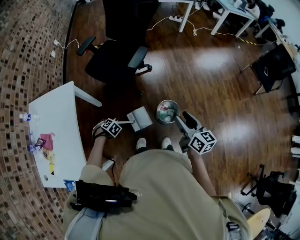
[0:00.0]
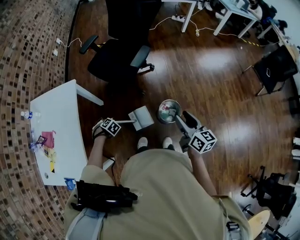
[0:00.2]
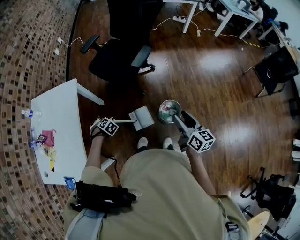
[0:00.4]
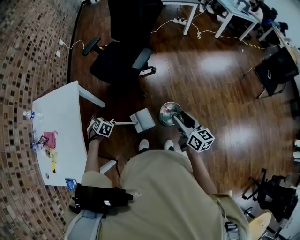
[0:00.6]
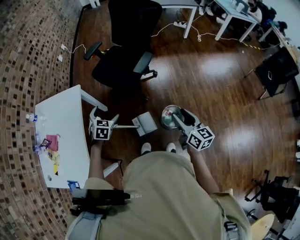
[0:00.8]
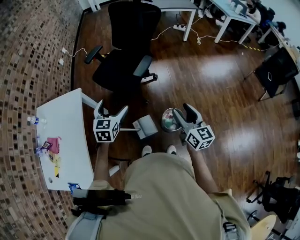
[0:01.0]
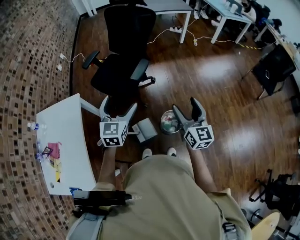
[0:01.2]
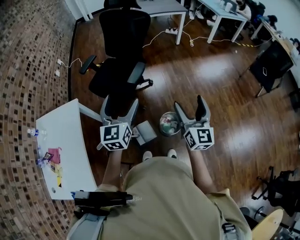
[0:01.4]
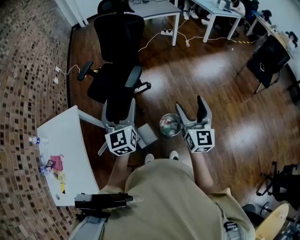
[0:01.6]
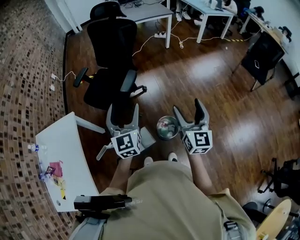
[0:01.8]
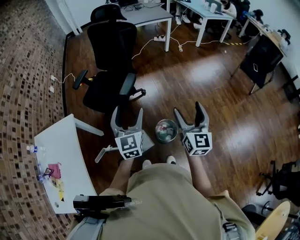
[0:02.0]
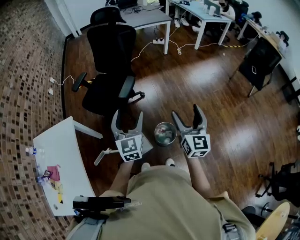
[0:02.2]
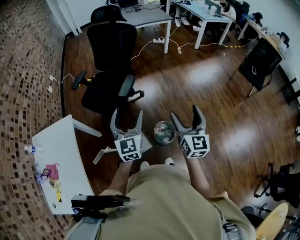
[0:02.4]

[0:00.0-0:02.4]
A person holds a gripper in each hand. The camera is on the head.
0:00.0 to 0:01.2: The right gripper shifts about 10 cm upward, and changes its angle by about 30 degrees; the left gripper goes about 40 cm upward, points its fingers about 70 degrees further upward, and opens.
0:01.2 to 0:02.4: The left gripper is displaced to the right by roughly 10 cm. Meanwhile the right gripper heads to the right, covering some 5 cm.

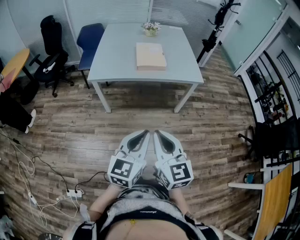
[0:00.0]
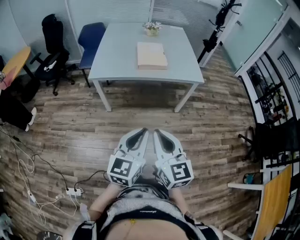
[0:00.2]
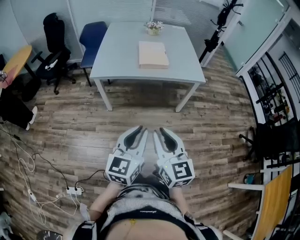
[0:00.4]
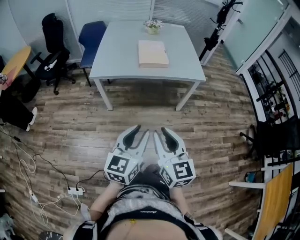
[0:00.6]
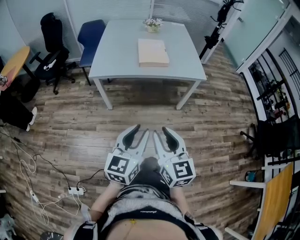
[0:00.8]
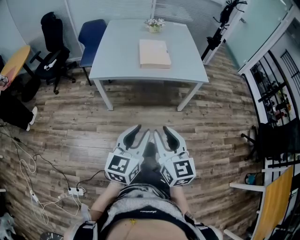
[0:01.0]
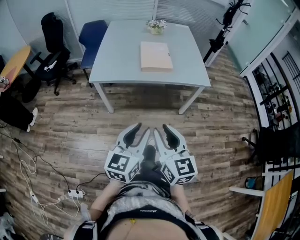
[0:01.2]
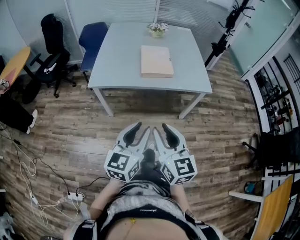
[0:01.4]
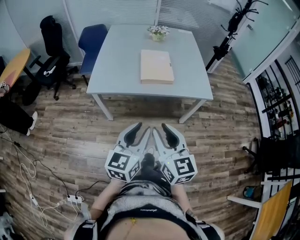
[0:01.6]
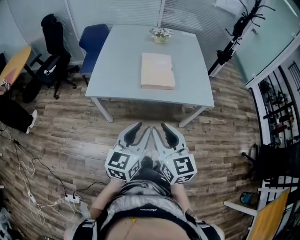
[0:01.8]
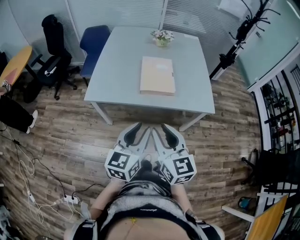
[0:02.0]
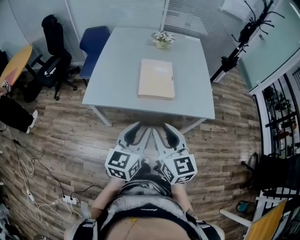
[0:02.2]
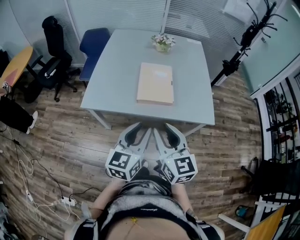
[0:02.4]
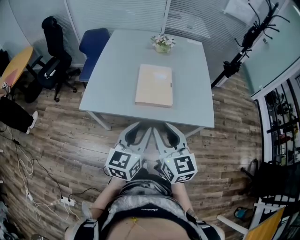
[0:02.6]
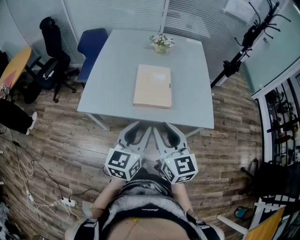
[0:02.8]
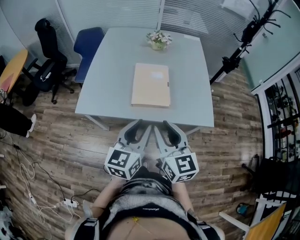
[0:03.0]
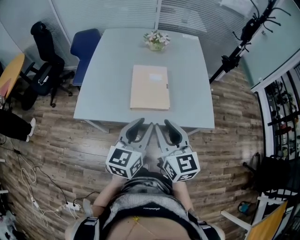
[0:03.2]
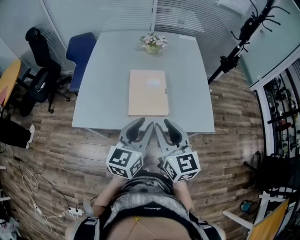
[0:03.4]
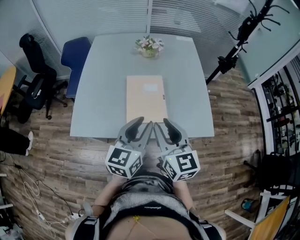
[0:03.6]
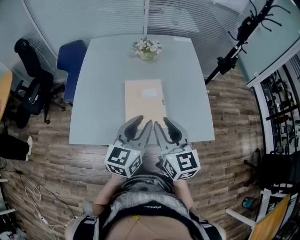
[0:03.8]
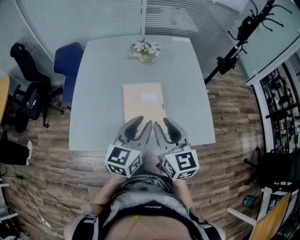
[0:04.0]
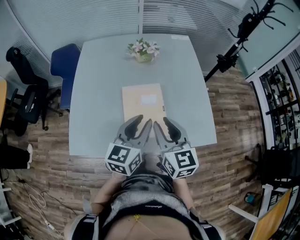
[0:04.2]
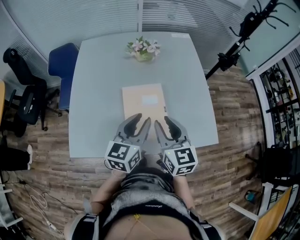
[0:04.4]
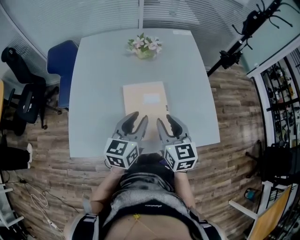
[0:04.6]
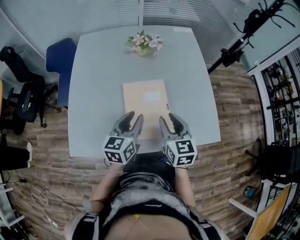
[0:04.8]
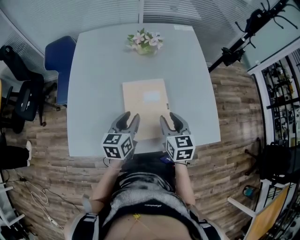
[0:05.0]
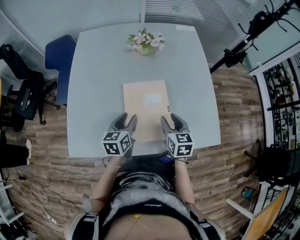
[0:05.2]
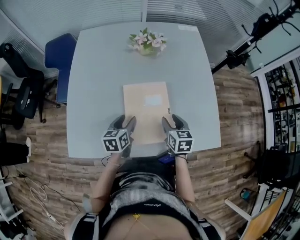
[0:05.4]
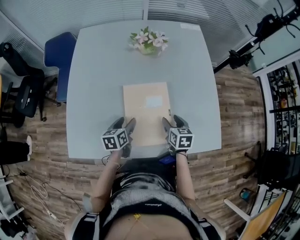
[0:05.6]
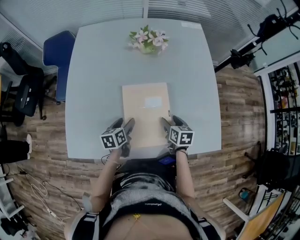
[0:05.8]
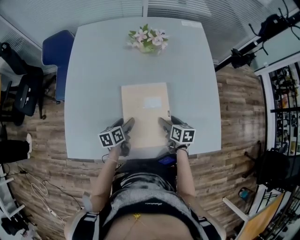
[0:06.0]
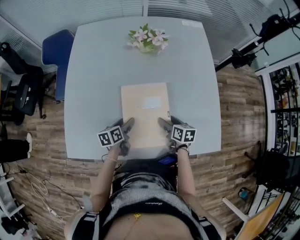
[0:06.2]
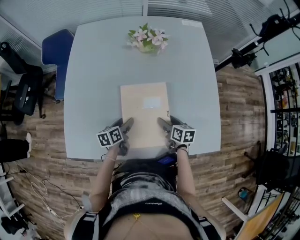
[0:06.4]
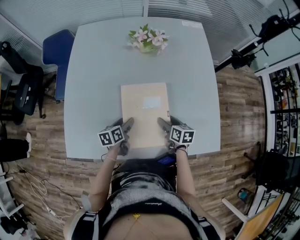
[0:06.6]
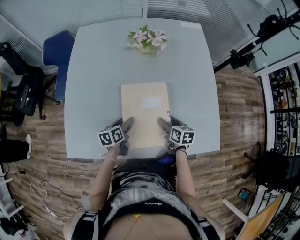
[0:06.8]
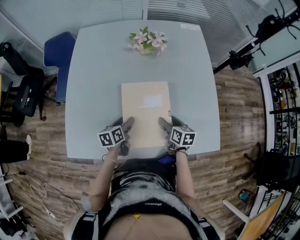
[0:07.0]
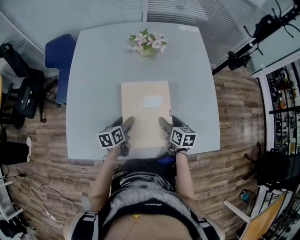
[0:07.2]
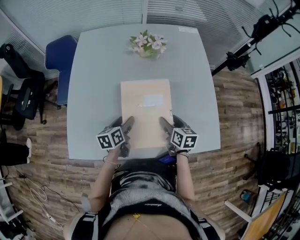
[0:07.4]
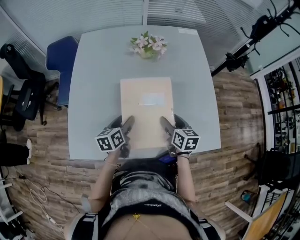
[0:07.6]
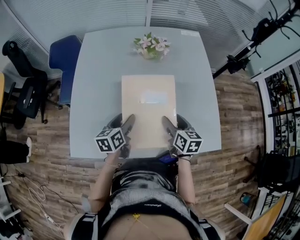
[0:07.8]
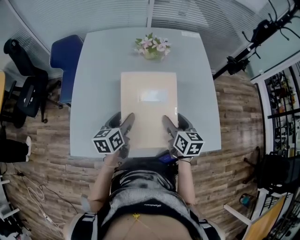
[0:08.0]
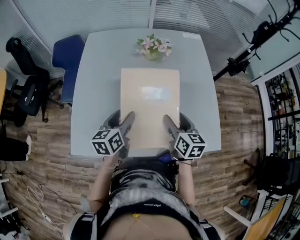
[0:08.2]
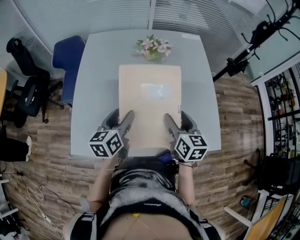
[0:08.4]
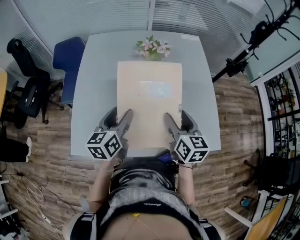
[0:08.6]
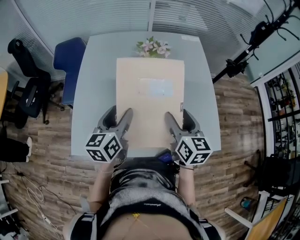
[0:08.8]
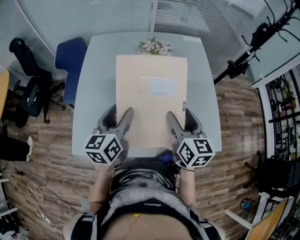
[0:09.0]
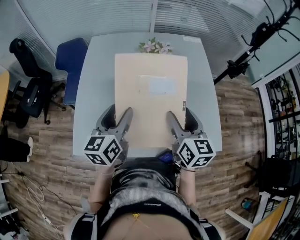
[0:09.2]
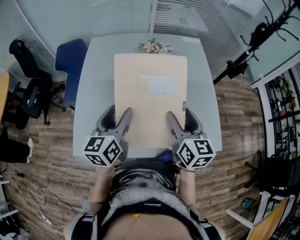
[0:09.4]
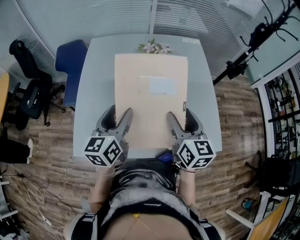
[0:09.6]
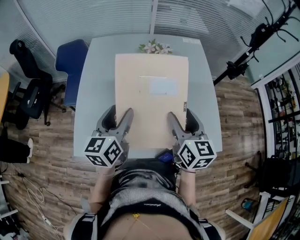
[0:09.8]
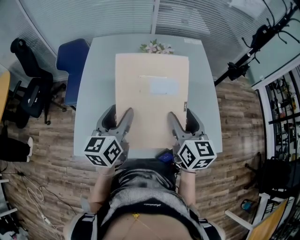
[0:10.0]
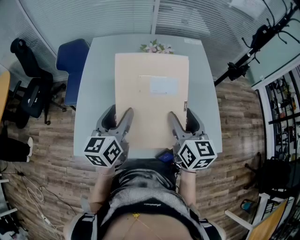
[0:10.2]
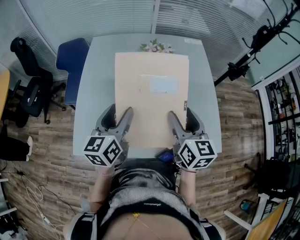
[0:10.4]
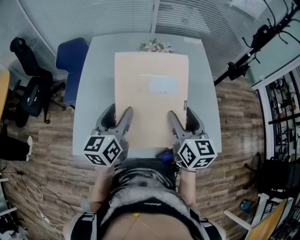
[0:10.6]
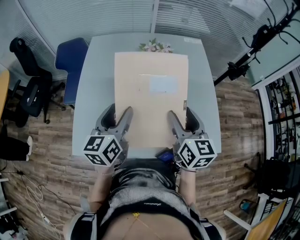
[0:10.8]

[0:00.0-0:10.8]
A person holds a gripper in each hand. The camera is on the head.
0:00.0 to 0:01.6: The two grippers go roughly 20 cm forward. The right gripper opens up.
0:01.6 to 0:03.0: The grippers both shift forward by some 25 cm.
0:03.0 to 0:04.6: Both grippers move forward, approximately 30 cm.
0:04.6 to 0:06.2: Both grippers move downward, about 25 cm. The right gripper swivels about 40 degrees, and opens. Meanwhile the left gripper turns by some 40 degrees, and opens its fingers.
0:06.2 to 0:07.8: The two grippers go some 15 cm upward.
0:07.8 to 0:09.2: Both grippers move upward, approximately 15 cm. The left gripper turns by approximately 20 degrees.
0:09.2 to 0:10.8: Both grippers stay about where they are.

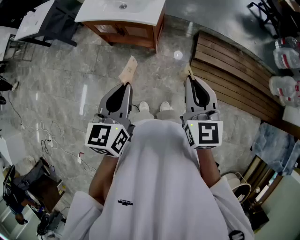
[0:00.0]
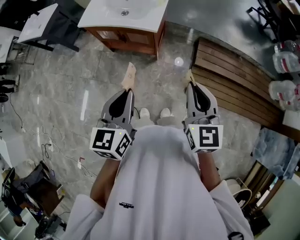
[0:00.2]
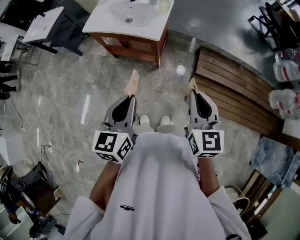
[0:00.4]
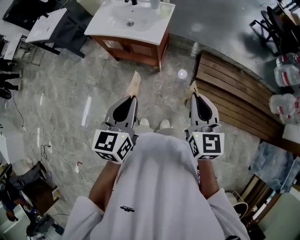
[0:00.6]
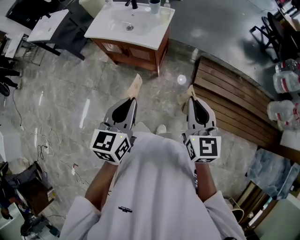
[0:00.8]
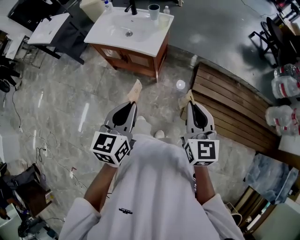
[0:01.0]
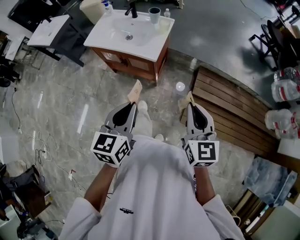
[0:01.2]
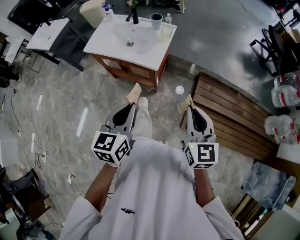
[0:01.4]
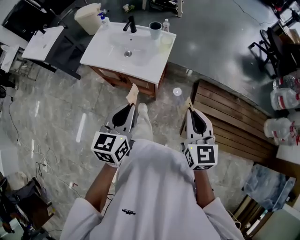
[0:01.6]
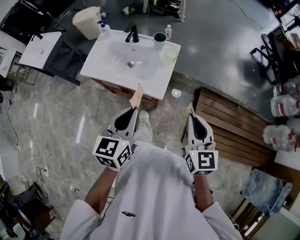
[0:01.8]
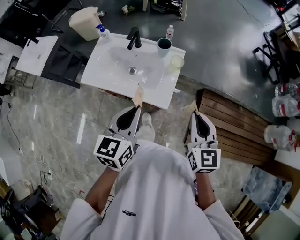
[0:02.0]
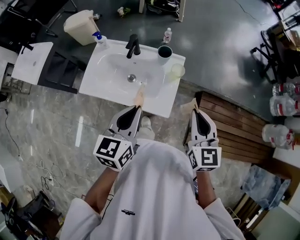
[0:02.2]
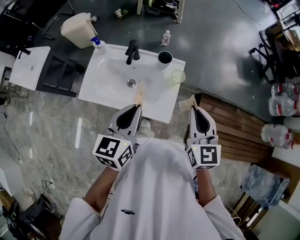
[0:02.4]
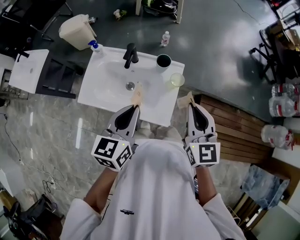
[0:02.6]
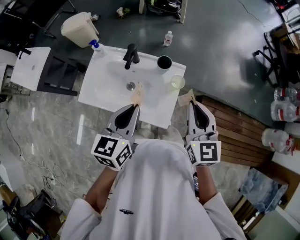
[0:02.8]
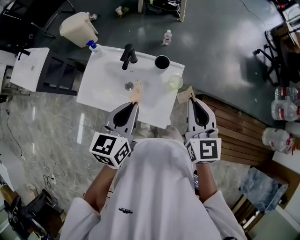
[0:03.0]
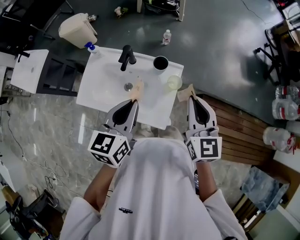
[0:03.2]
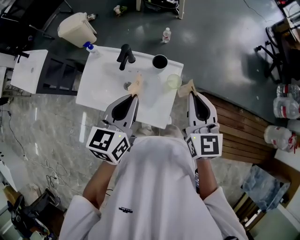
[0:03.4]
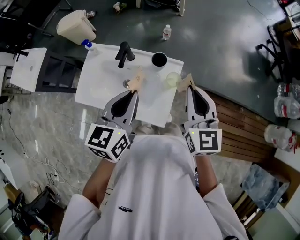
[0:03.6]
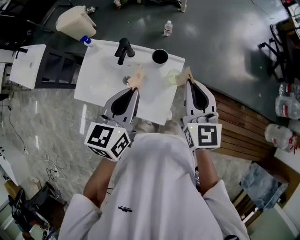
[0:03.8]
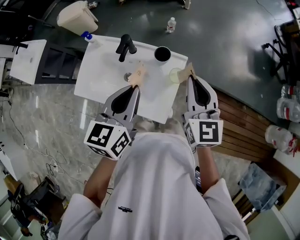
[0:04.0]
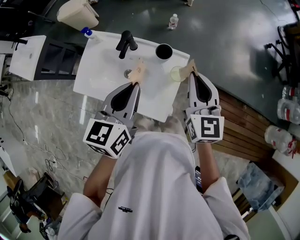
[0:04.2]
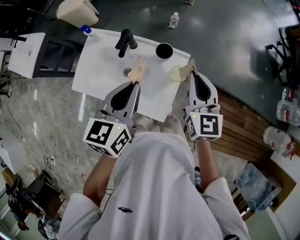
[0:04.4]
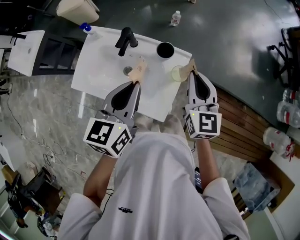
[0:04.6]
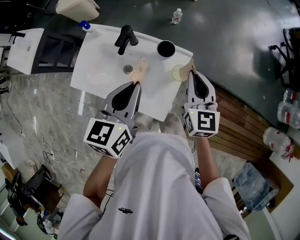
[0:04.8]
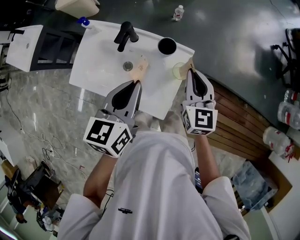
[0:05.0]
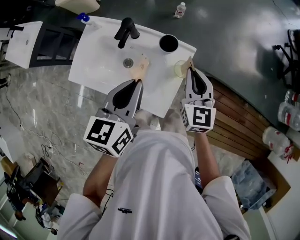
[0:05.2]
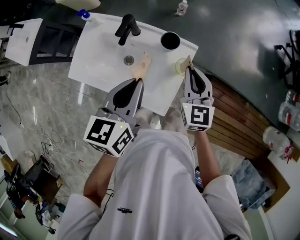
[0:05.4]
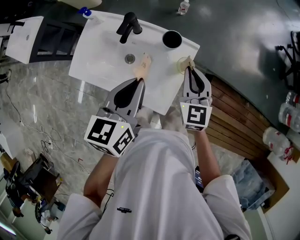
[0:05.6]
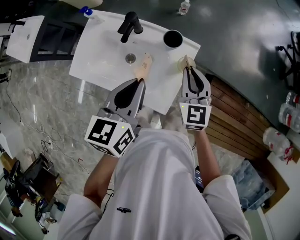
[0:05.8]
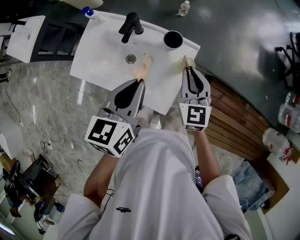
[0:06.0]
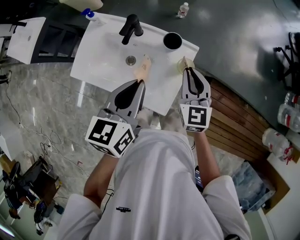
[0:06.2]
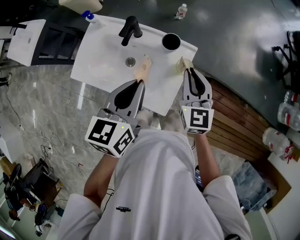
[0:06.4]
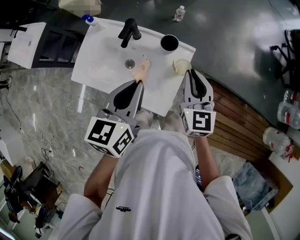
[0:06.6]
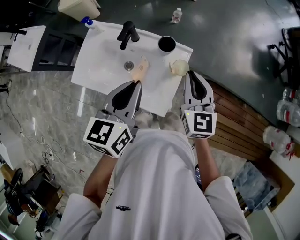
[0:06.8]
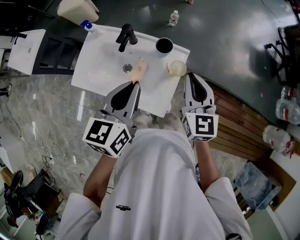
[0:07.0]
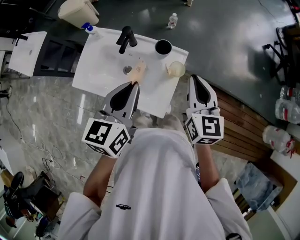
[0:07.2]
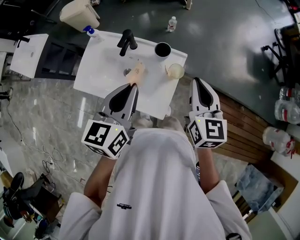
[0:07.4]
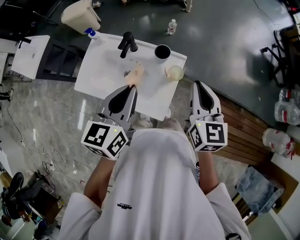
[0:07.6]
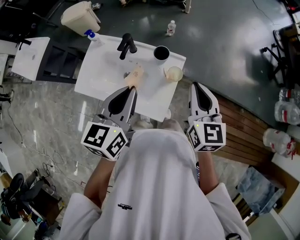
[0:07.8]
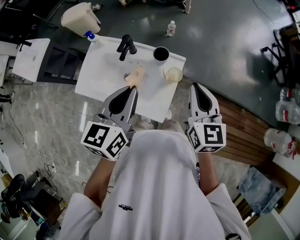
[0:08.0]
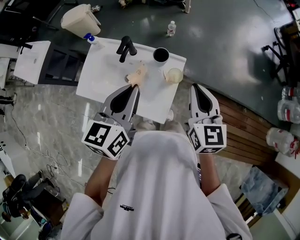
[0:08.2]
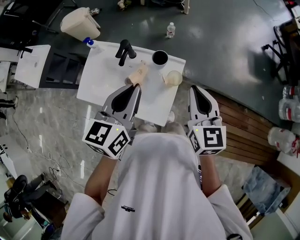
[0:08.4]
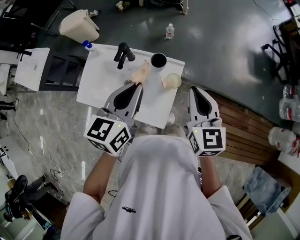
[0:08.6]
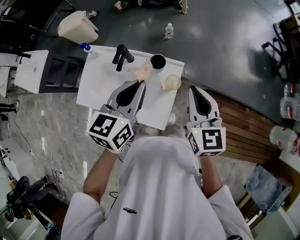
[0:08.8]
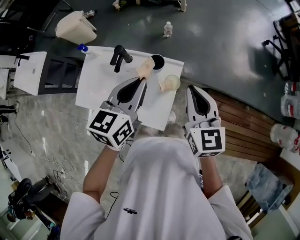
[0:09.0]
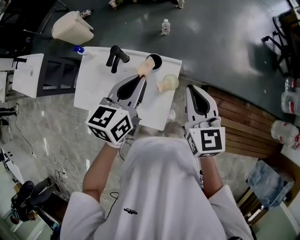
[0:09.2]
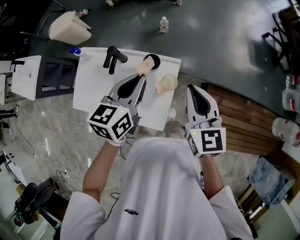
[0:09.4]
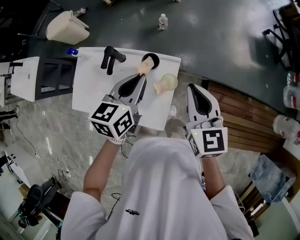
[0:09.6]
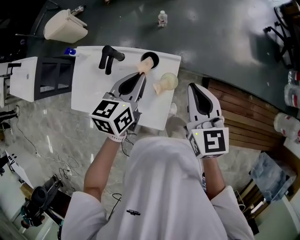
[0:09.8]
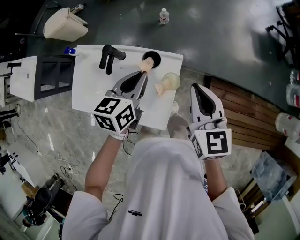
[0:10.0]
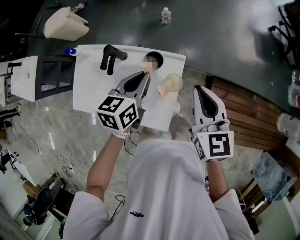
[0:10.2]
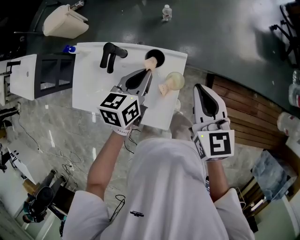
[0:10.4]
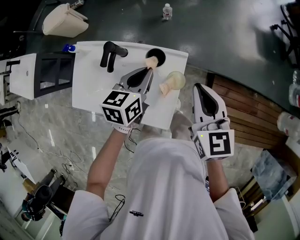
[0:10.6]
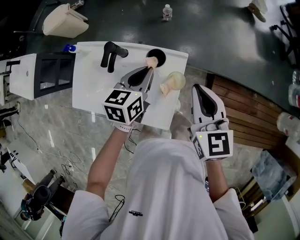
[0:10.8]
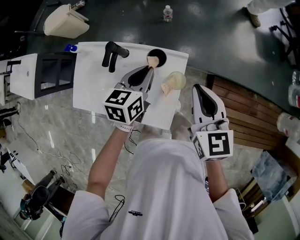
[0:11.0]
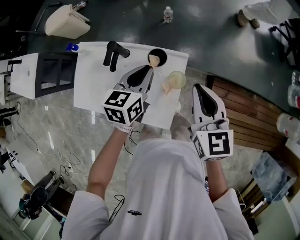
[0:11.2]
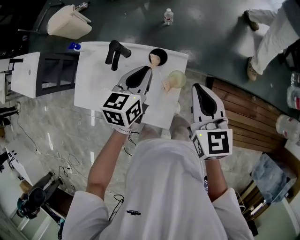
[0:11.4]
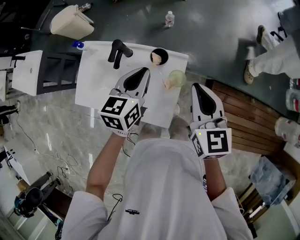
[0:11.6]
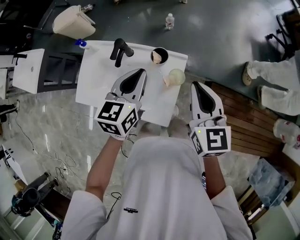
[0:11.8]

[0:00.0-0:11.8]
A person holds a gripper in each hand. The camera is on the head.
0:00.0 to 0:01.4: The grippers both shift forward by some 10 cm.
0:01.4 to 0:03.0: Both grippers are carried forward, approximately 40 cm.
0:03.0 to 0:04.4: The right gripper moves forward and downward, approximately 10 cm, while the left gripper is displaced forward by approximately 5 cm.
0:04.4 to 0:06.0: The right gripper travels downward by about 10 cm.
0:06.0 to 0:07.4: The left gripper is displaced upward by some 5 cm; the right gripper moves upward and to the right, roughly 15 cm.
0:07.4 to 0:08.8: The left gripper is displaced forward by approximately 5 cm.
0:08.8 to 0:10.4: The left gripper moves downward and forward, some 15 cm. The right gripper goes approximately 5 cm downward.
0:10.4 to 0:11.8: The right gripper shifts by some 5 cm. Meanwhile the left gripper travels upward by roughly 10 cm.
